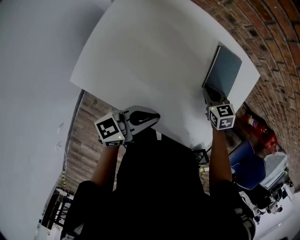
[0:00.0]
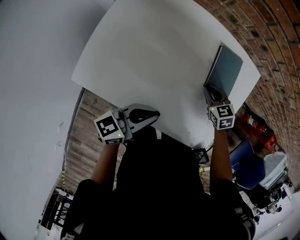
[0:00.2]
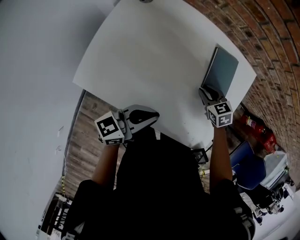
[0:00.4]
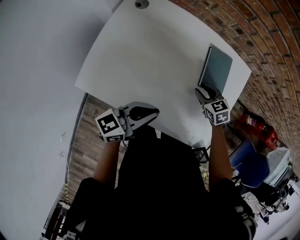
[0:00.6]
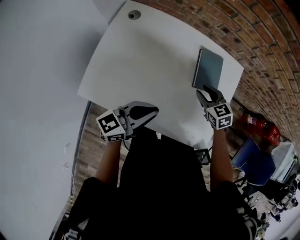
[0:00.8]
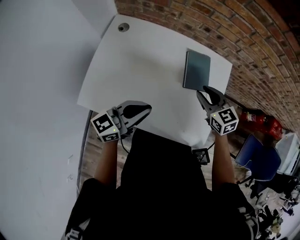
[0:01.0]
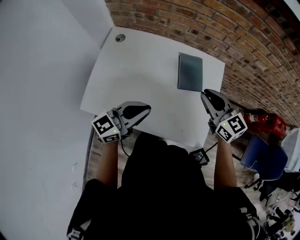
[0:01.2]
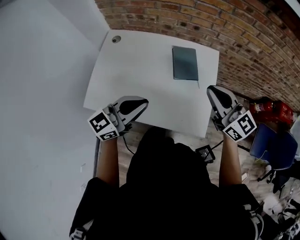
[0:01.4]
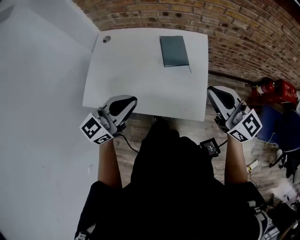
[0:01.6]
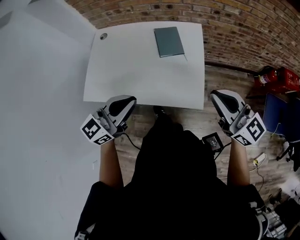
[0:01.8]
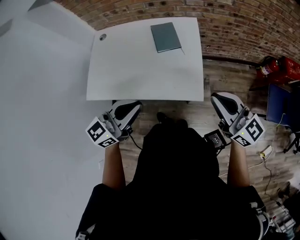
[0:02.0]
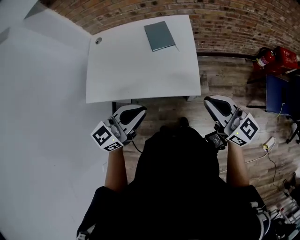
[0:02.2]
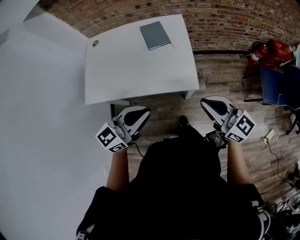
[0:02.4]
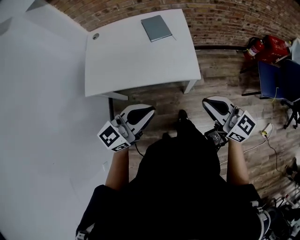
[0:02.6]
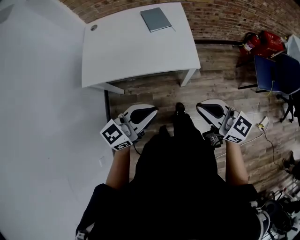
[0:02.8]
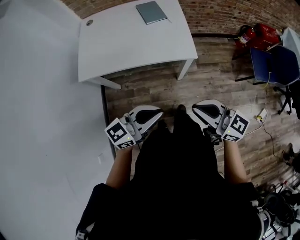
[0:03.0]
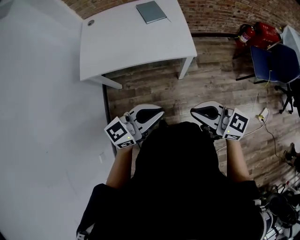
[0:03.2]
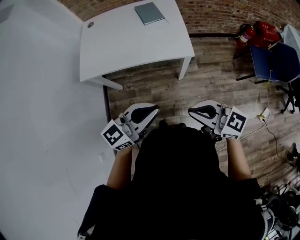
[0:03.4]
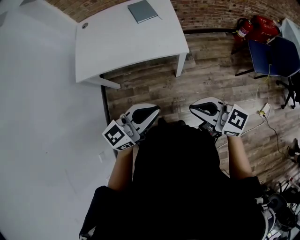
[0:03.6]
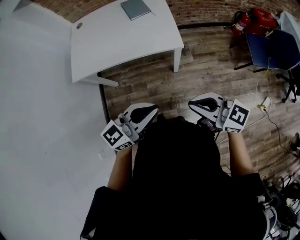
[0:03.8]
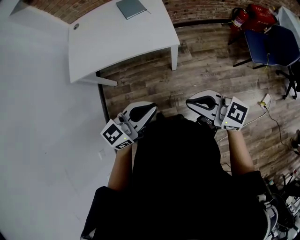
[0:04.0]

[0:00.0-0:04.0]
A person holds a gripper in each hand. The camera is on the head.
0:00.0 to 0:01.4: The right gripper heads upward, covering some 35 cm, tilts its fingers approximately 50 degrees upward, and opens, then closes once more. The left gripper heads upward, covering some 20 cm, and turns by about 30 degrees.
0:01.4 to 0:02.6: The left gripper heads backward and to the right, covering roughly 30 cm, while the right gripper is displaced backward by roughly 35 cm.
0:02.6 to 0:04.0: The right gripper changes place by approximately 20 cm. Meanwhile the left gripper shifts by some 15 cm.

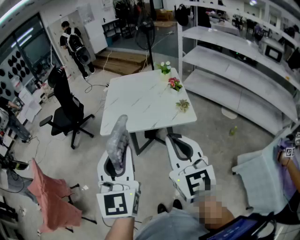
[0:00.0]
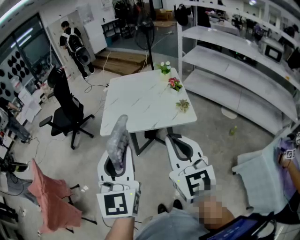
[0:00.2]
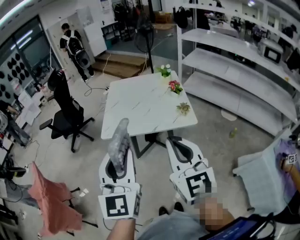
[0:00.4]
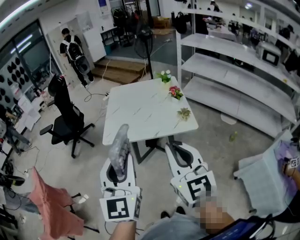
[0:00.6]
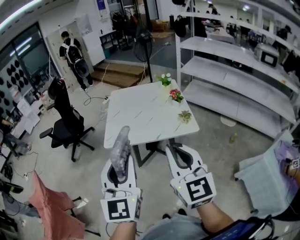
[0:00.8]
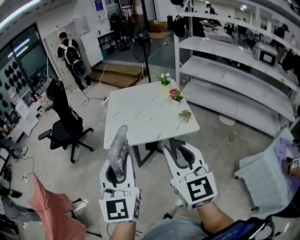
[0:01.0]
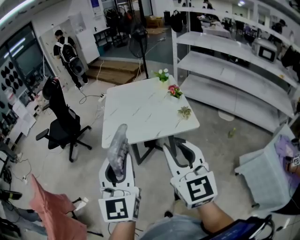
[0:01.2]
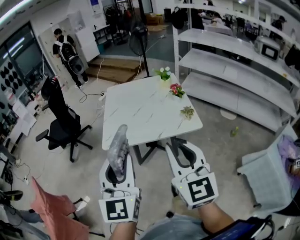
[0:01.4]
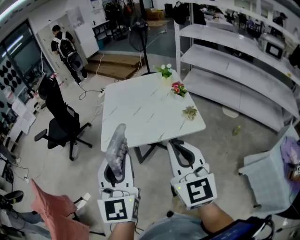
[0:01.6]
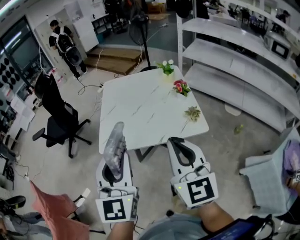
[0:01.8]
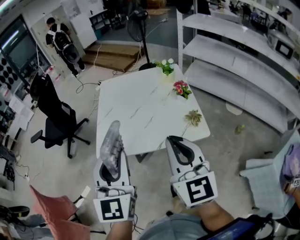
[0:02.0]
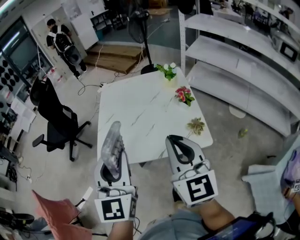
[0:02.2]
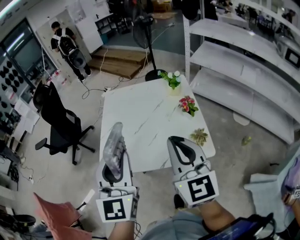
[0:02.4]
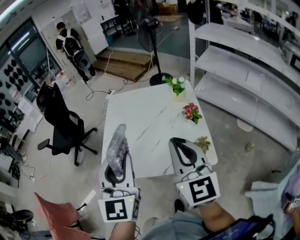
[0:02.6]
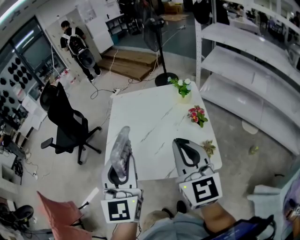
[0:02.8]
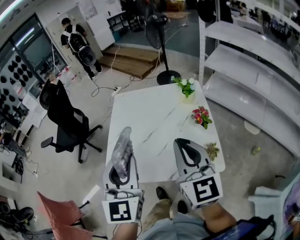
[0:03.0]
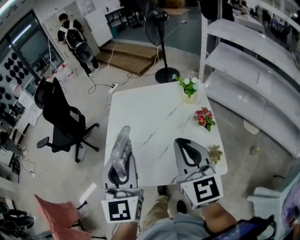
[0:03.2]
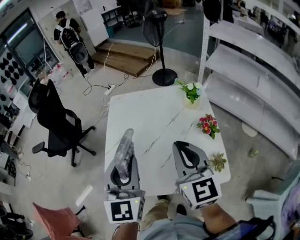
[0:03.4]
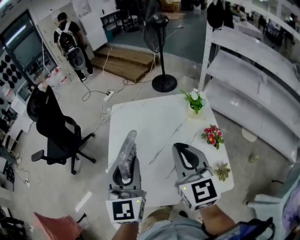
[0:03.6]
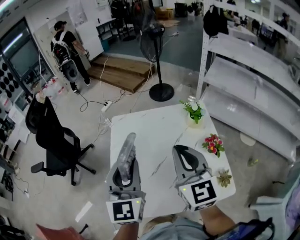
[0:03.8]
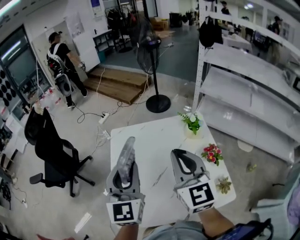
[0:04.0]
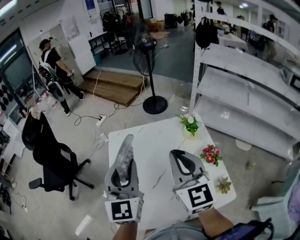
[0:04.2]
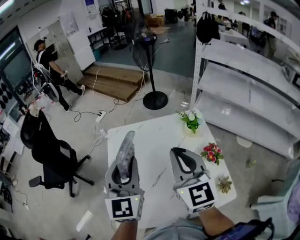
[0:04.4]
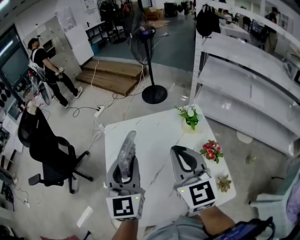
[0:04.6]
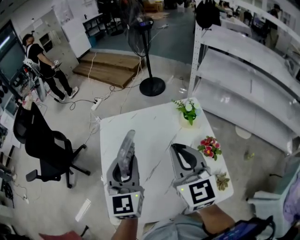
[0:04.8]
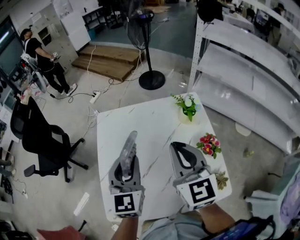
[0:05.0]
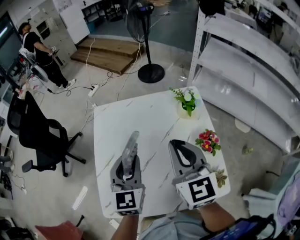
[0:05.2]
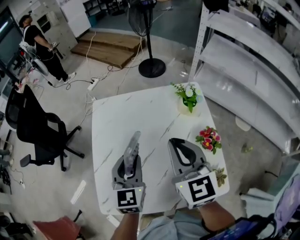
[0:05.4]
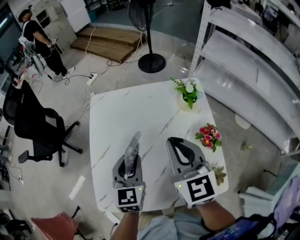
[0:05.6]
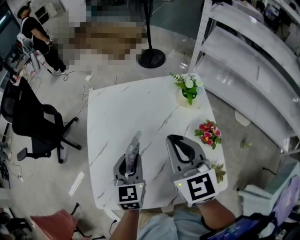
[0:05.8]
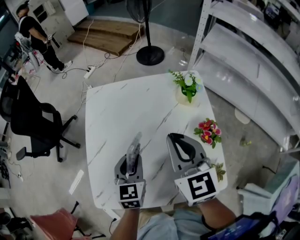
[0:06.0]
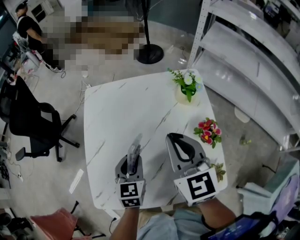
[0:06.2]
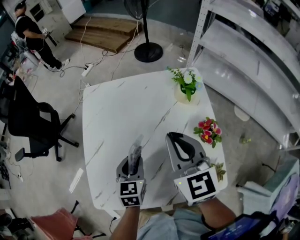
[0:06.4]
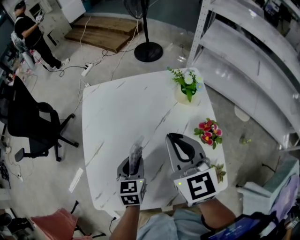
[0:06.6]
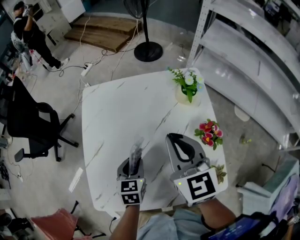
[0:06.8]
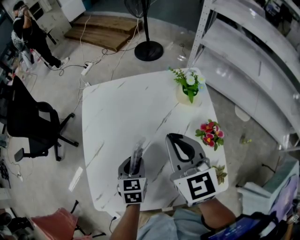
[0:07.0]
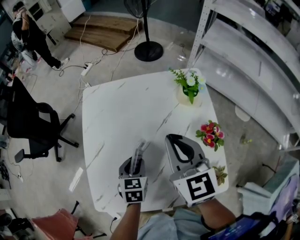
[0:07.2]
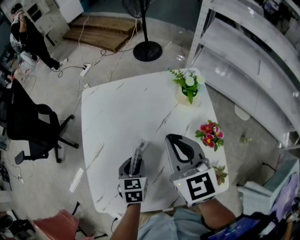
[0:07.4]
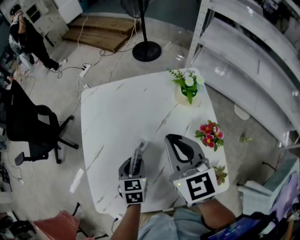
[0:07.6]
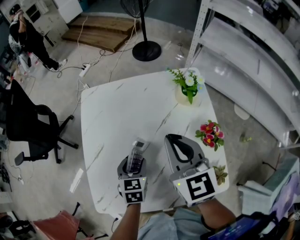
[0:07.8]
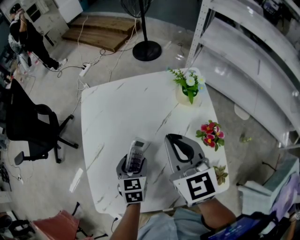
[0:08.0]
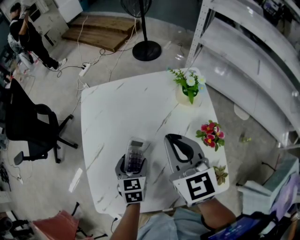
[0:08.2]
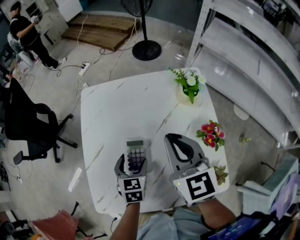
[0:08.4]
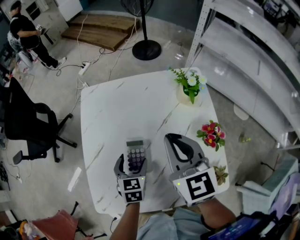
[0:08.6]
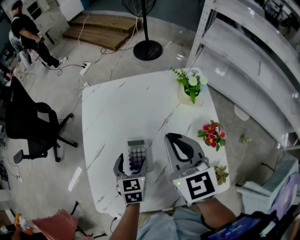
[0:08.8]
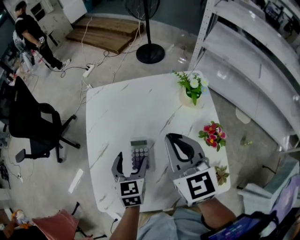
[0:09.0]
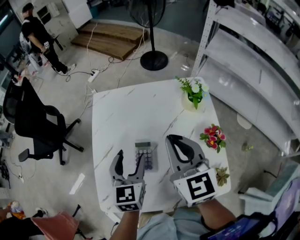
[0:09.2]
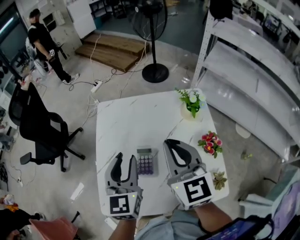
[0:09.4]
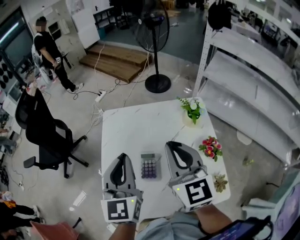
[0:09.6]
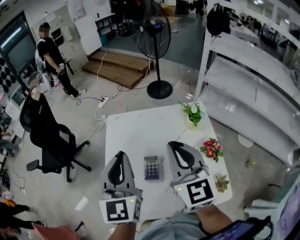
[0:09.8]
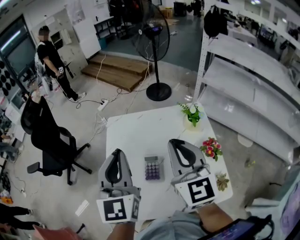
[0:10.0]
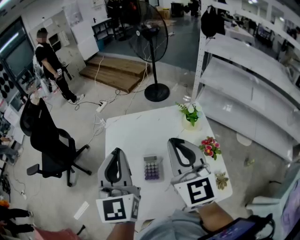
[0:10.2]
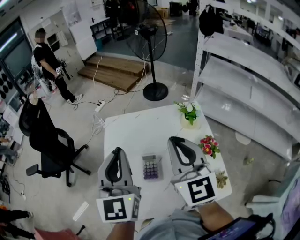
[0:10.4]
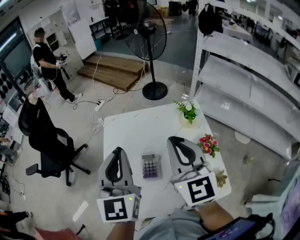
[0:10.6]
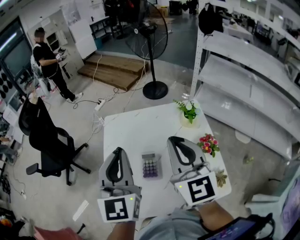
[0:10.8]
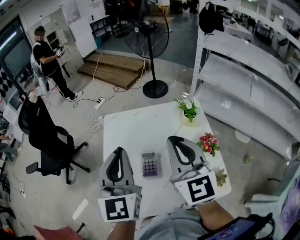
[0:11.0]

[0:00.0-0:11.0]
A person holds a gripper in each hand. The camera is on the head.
0:00.0 to 0:01.6: Both grippers travel together forward, roughly 10 cm. The right gripper opens, then closes again.
0:01.6 to 0:03.2: The two grippers go roughly 30 cm forward.
0:03.2 to 0:04.8: Both grippers travel together forward, roughly 20 cm.
0:04.8 to 0:06.2: The right gripper shifts about 10 cm downward. The left gripper is displaced downward by approximately 20 cm, and turns by roughly 30 degrees.
0:06.2 to 0:07.8: The left gripper travels downward by approximately 5 cm.
0:07.8 to 0:09.4: The right gripper heads upward, covering roughly 5 cm. The left gripper goes approximately 25 cm upward, tips its fingers upward by roughly 30 degrees, and opens, then closes again.
0:09.4 to 0:11.0: The right gripper is displaced upward by some 5 cm, while the left gripper goes approximately 10 cm upward, and closes its fingers.

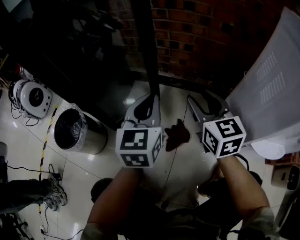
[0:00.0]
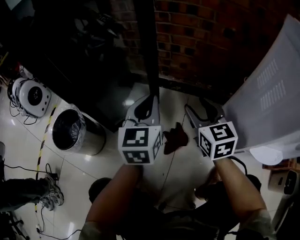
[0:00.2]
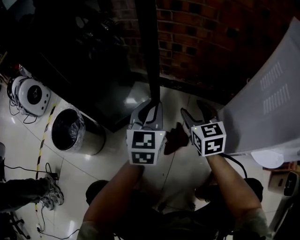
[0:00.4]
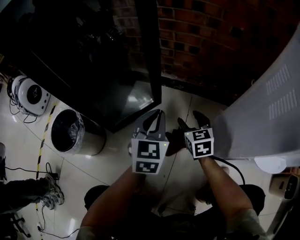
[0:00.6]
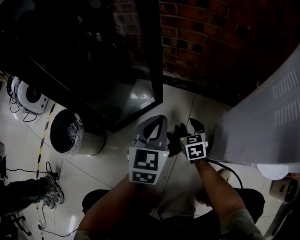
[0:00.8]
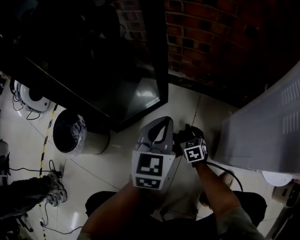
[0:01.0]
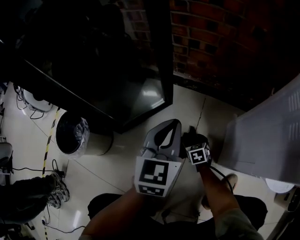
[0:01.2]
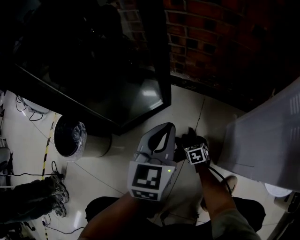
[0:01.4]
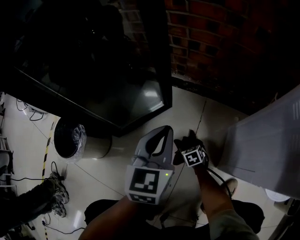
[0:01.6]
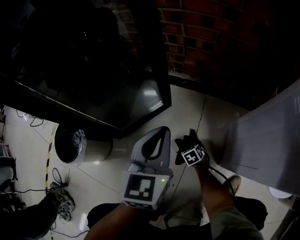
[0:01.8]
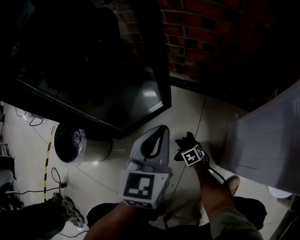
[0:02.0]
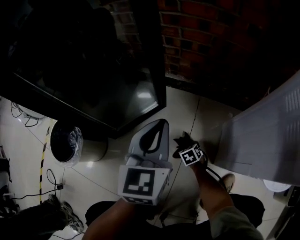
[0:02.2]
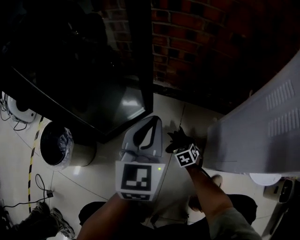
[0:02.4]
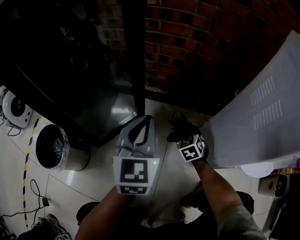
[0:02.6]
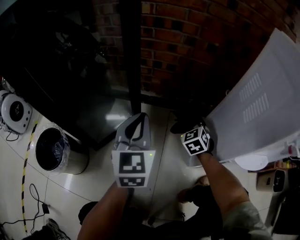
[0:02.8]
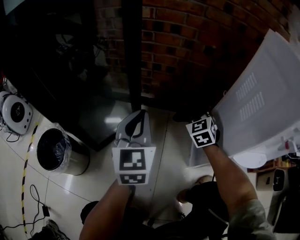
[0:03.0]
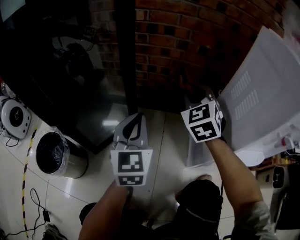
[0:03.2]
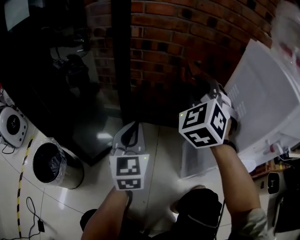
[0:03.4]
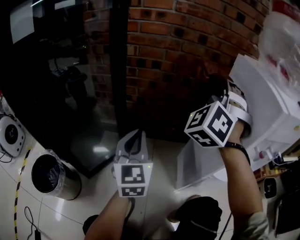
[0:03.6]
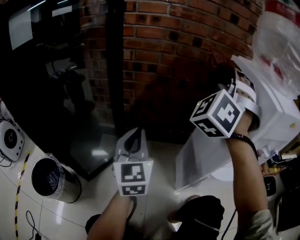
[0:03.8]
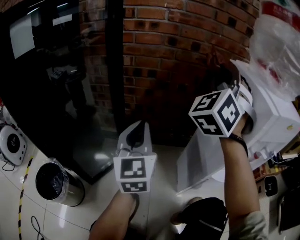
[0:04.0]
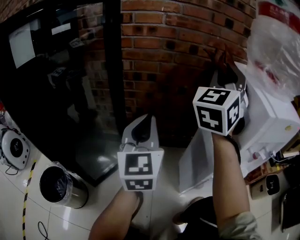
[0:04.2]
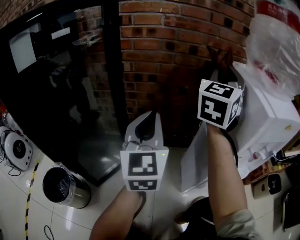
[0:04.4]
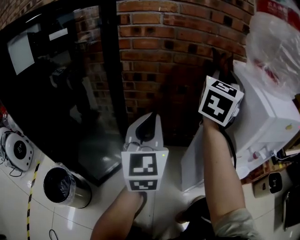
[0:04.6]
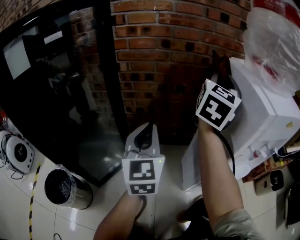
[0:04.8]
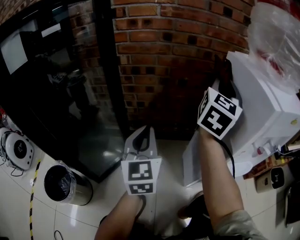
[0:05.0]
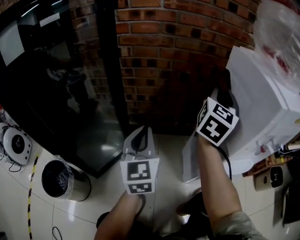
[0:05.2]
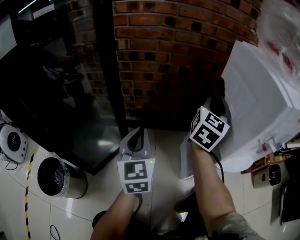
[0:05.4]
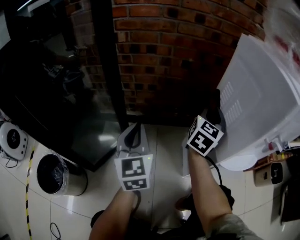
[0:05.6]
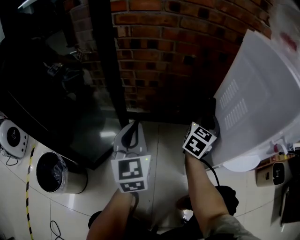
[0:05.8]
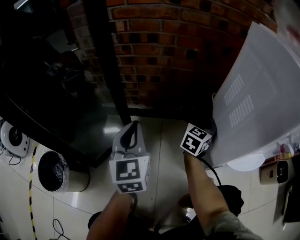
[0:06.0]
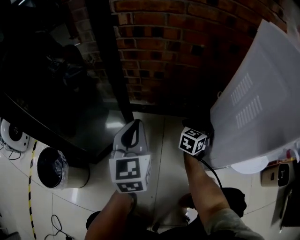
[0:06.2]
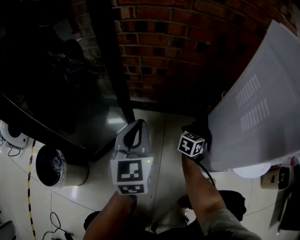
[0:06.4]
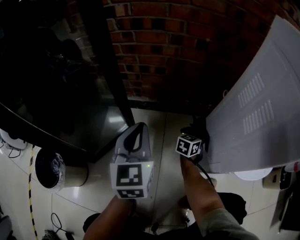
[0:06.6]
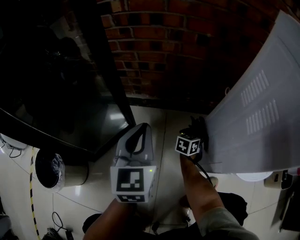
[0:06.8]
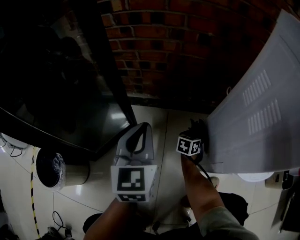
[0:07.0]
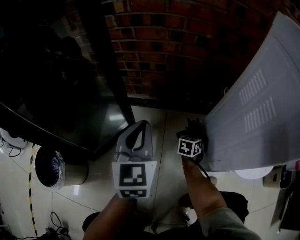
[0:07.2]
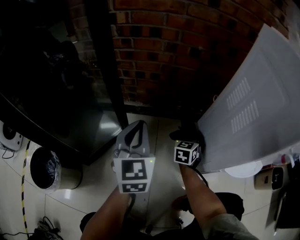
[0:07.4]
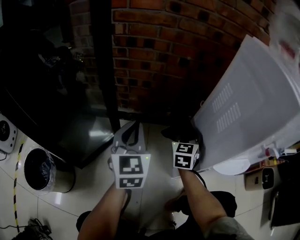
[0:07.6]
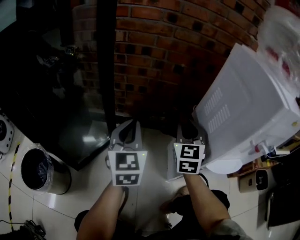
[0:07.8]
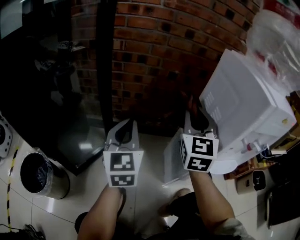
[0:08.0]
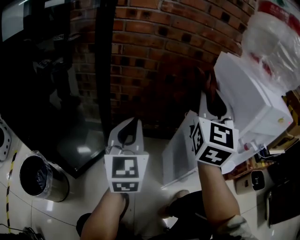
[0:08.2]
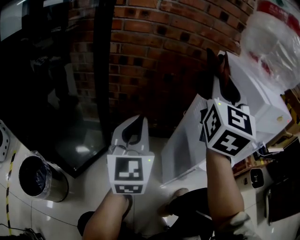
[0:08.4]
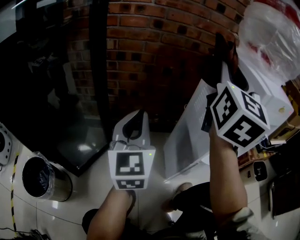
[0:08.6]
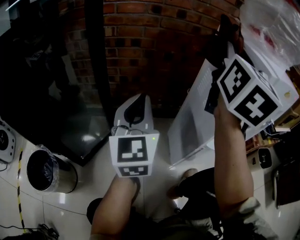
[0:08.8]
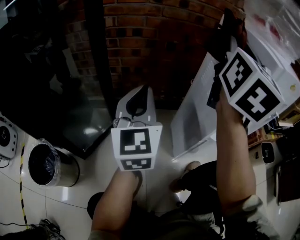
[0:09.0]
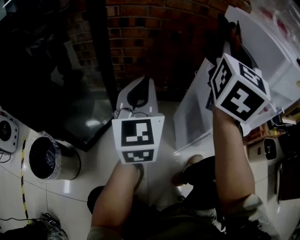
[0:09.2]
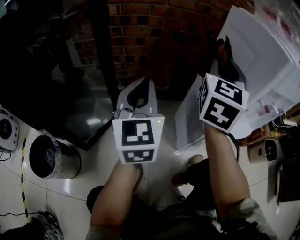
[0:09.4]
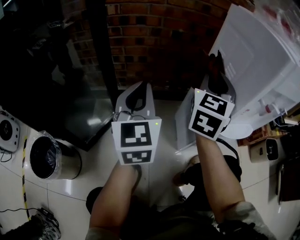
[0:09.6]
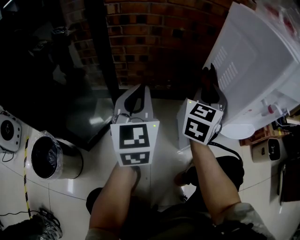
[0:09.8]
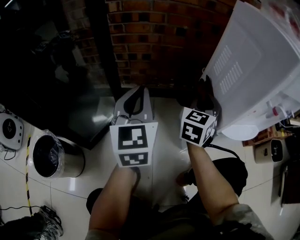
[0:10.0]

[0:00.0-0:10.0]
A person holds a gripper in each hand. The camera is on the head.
0:00.0 to 0:01.4: The left gripper heads downward, covering about 5 cm; the right gripper shifts about 40 cm downward, and angles its fingers downward, by about 40 degrees.
0:01.4 to 0:02.8: The right gripper moves upward, roughly 30 cm, swivels approximately 40 degrees, and closes up. Meanwhile the left gripper heads upward, covering approximately 10 cm.
0:02.8 to 0:04.2: The left gripper goes about 20 cm upward; the right gripper is displaced upward by roughly 50 cm, and tilts its fingers approximately 50 degrees upward.
0:04.2 to 0:05.8: The right gripper heads downward, covering approximately 35 cm, and rotates approximately 40 degrees. The left gripper moves downward, roughly 15 cm.
0:05.8 to 0:07.2: The left gripper shifts roughly 5 cm downward. The right gripper is displaced downward by about 30 cm, and tilts its fingers some 30 degrees downward.
0:07.2 to 0:08.6: The left gripper heads upward, covering roughly 15 cm, and rotates roughly 20 degrees. Meanwhile the right gripper travels upward by about 60 cm, and tilts its fingers roughly 60 degrees upward.
0:08.6 to 0:10.0: The right gripper heads downward, covering roughly 35 cm, and tilts its fingers roughly 30 degrees downward. The left gripper heads downward, covering some 10 cm.
